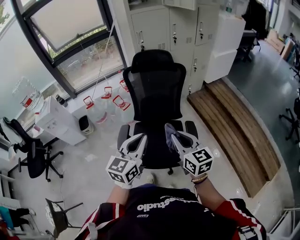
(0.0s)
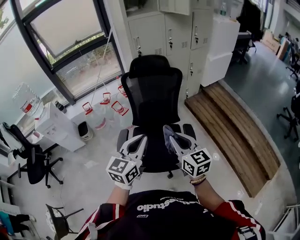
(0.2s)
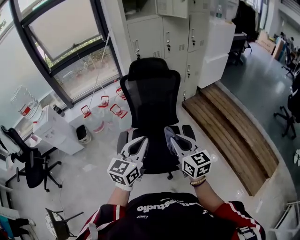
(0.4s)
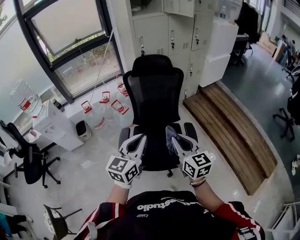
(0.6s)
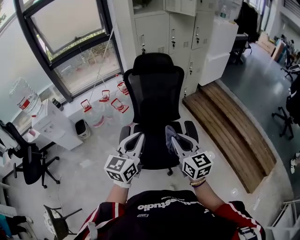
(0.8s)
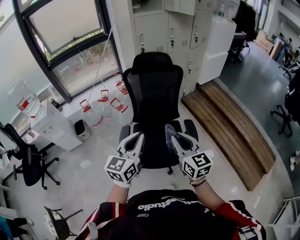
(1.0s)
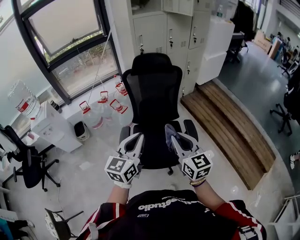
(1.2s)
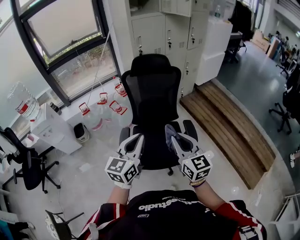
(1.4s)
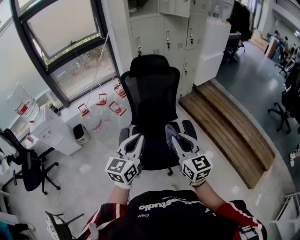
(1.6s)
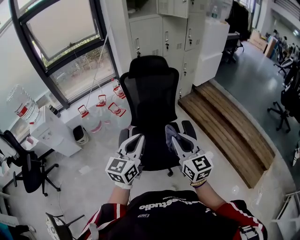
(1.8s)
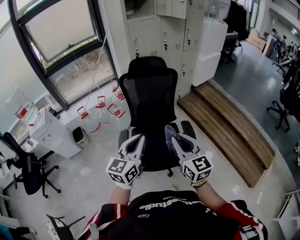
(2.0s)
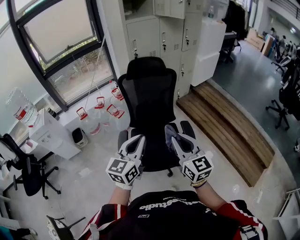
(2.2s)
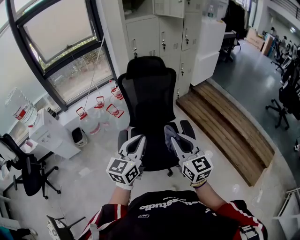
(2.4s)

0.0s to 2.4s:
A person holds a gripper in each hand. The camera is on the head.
0.0s to 1.2s: The left gripper moves to the left, some 10 cm. Meanwhile the right gripper is displaced to the left and backward by some 10 cm.
1.2s to 2.4s: The grippers stay close to where they were, moving slightly.

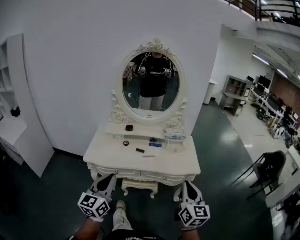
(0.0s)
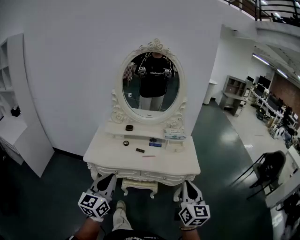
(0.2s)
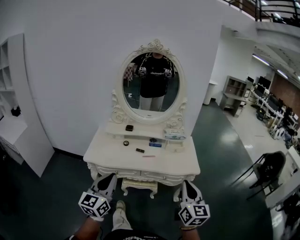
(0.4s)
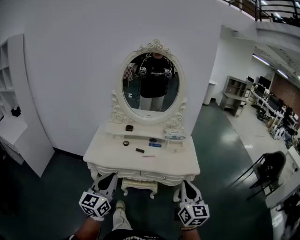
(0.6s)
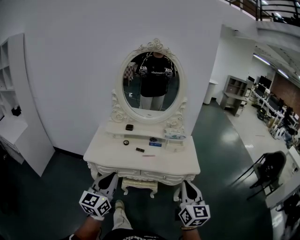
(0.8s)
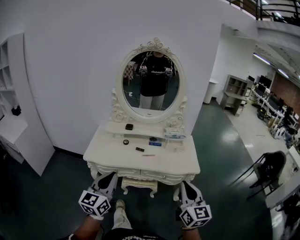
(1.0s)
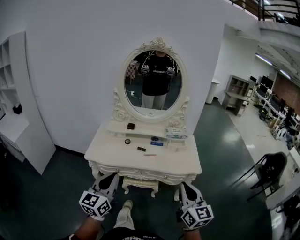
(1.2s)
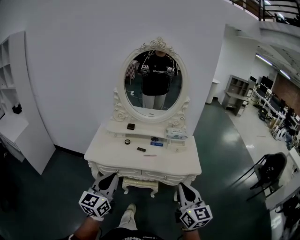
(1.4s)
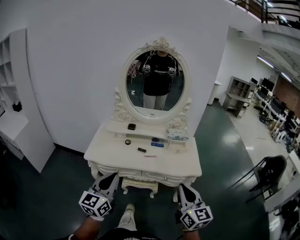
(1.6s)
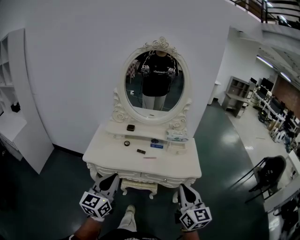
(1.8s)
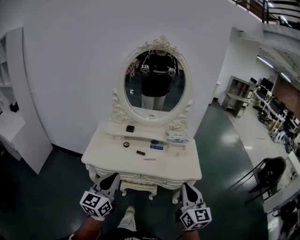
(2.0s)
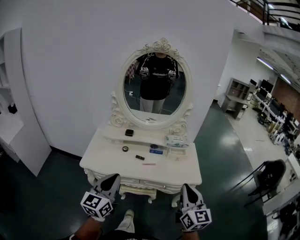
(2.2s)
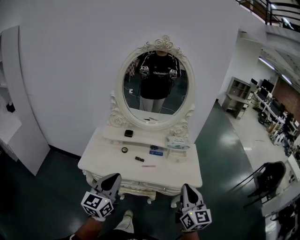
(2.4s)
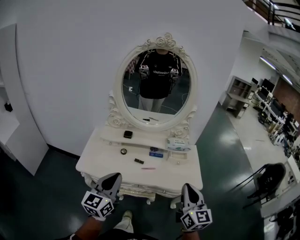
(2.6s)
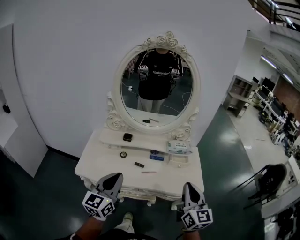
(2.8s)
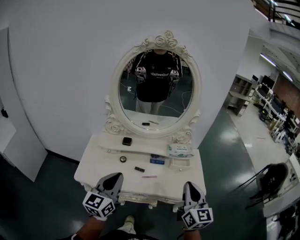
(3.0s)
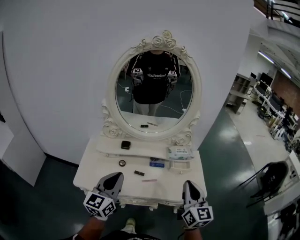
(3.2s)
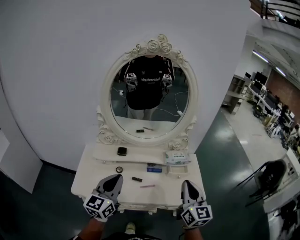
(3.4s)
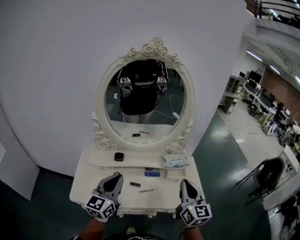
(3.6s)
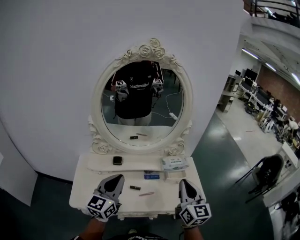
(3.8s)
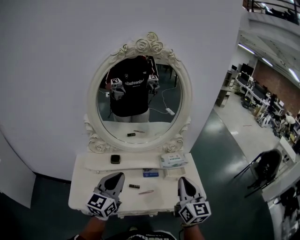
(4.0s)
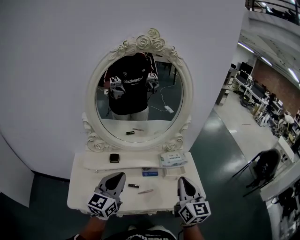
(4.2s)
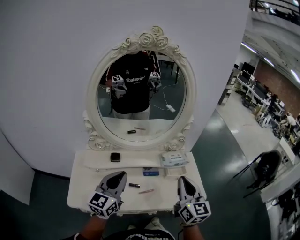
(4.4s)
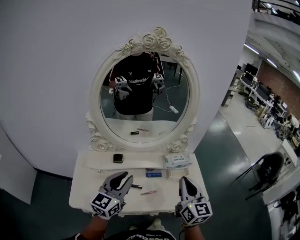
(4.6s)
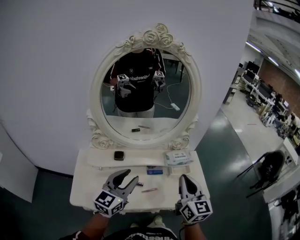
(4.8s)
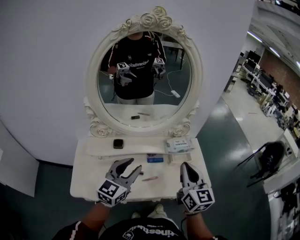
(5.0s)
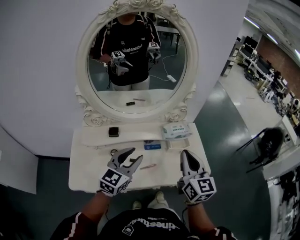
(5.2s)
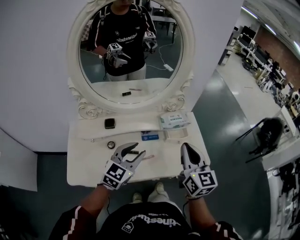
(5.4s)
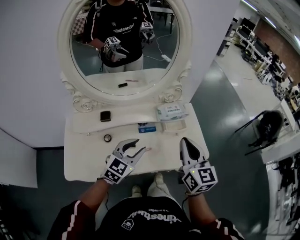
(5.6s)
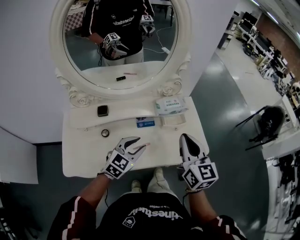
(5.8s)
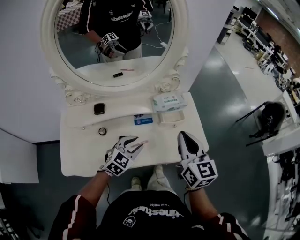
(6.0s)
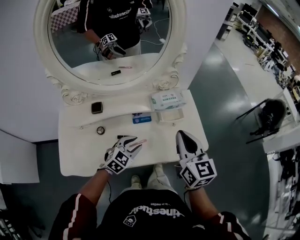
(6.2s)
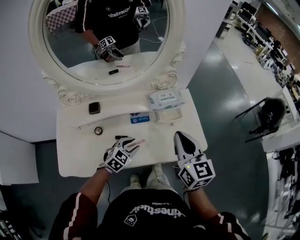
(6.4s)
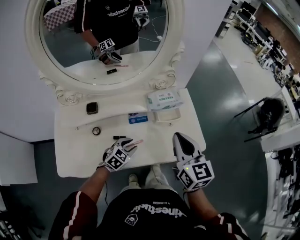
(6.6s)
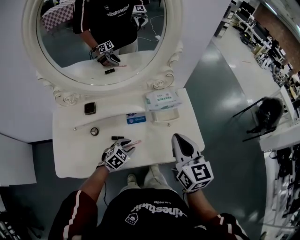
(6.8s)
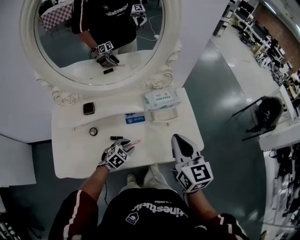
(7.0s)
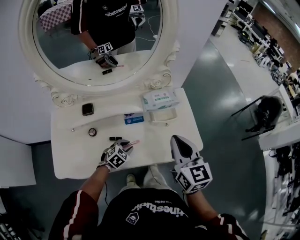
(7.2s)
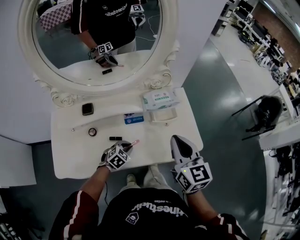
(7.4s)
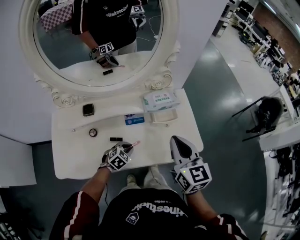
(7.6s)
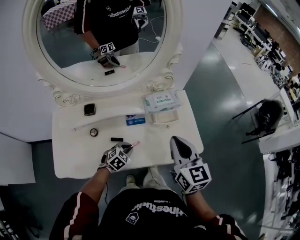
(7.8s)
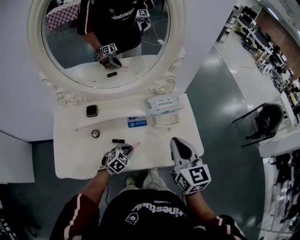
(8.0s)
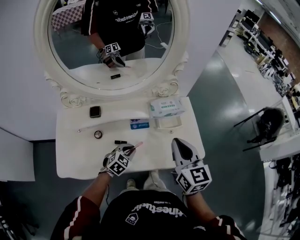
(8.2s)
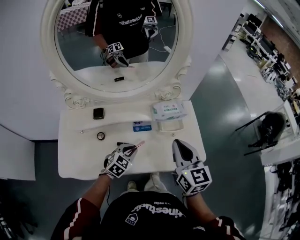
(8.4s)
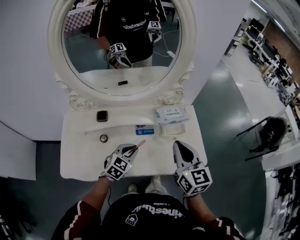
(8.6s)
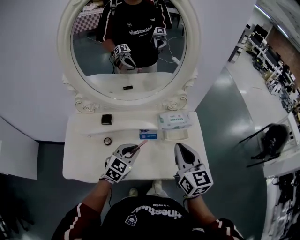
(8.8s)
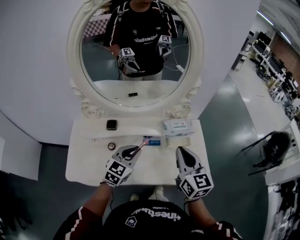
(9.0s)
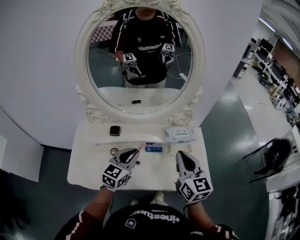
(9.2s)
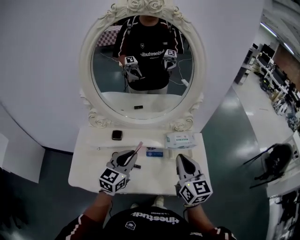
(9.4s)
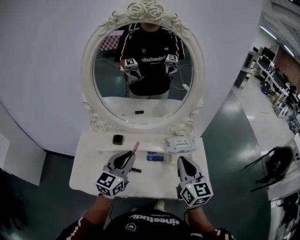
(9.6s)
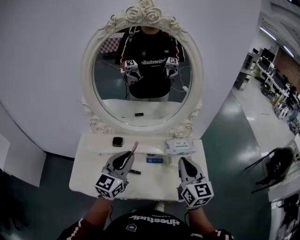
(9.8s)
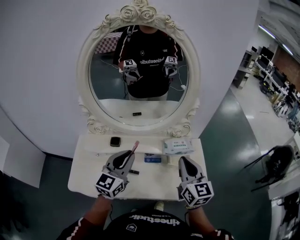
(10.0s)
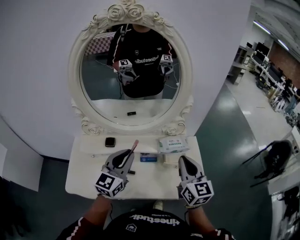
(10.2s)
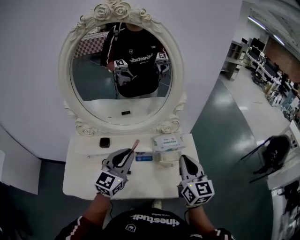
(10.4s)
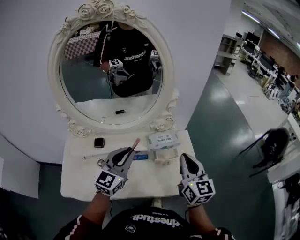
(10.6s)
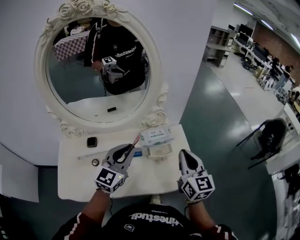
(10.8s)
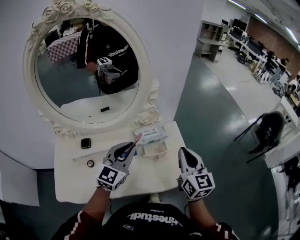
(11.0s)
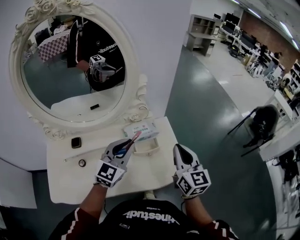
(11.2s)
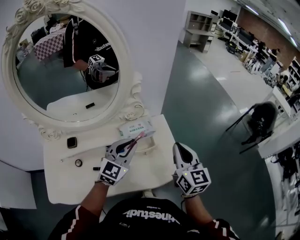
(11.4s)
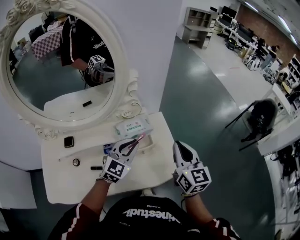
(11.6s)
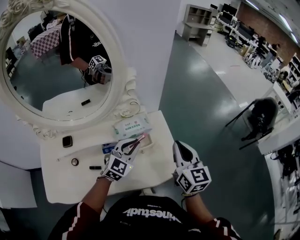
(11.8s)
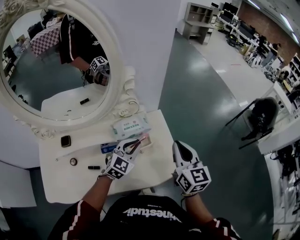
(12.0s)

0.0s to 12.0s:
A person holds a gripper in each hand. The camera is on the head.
0.0s to 1.6s: The grippers move only a little.
1.6s to 3.0s: The two grippers go some 20 cm forward.
3.0s to 4.4s: The left gripper shifts some 15 cm forward. Meanwhile the right gripper goes approximately 15 cm forward and to the left.
4.4s to 6.0s: The right gripper travels downward by roughly 5 cm. The left gripper shifts roughly 25 cm downward and to the right, tilts its fingers some 30 degrees downward, and opens up.
6.0s to 7.6s: The left gripper goes about 15 cm downward, rotates roughly 20 degrees, and closes its fingers.
7.6s to 9.0s: The left gripper travels upward by roughly 25 cm, and points its fingers roughly 30 degrees further upward; the right gripper ends up about 5 cm from where it was.
9.0s to 10.4s: The right gripper moves to the right, about 5 cm; the left gripper moves upward, some 10 cm.
10.4s to 12.0s: The right gripper shifts some 15 cm to the right, downward and forward, while the left gripper moves to the right, downward and forward, about 30 cm, and changes its angle by some 30 degrees.

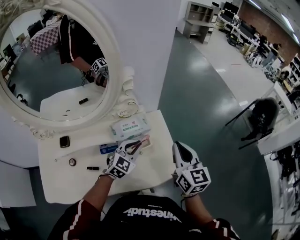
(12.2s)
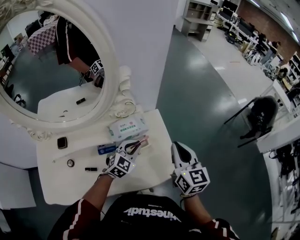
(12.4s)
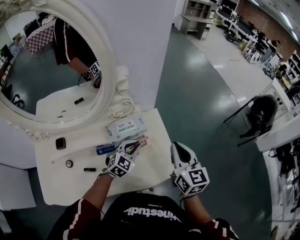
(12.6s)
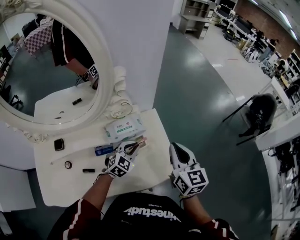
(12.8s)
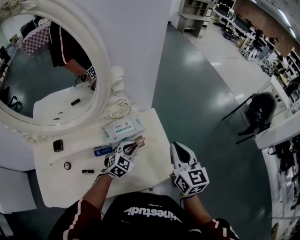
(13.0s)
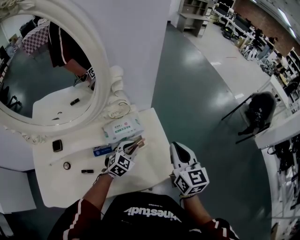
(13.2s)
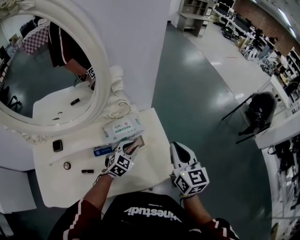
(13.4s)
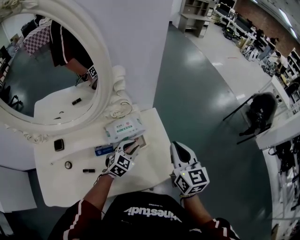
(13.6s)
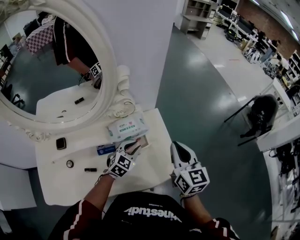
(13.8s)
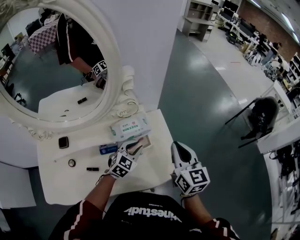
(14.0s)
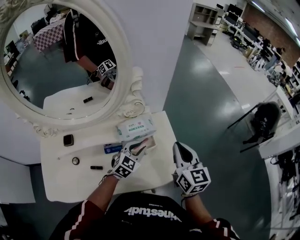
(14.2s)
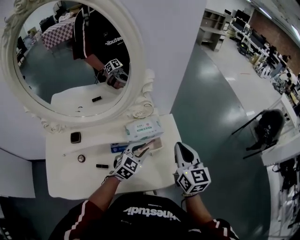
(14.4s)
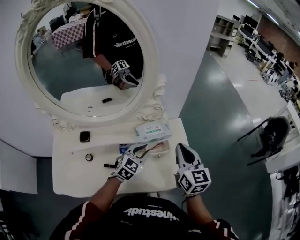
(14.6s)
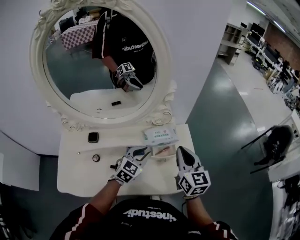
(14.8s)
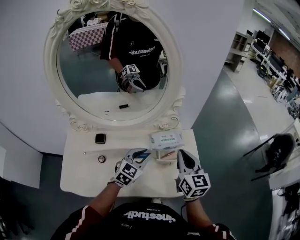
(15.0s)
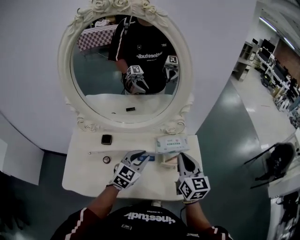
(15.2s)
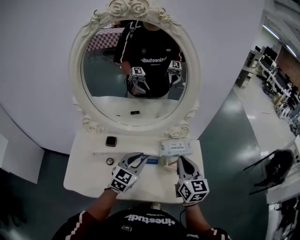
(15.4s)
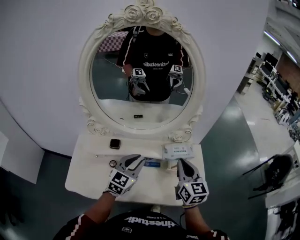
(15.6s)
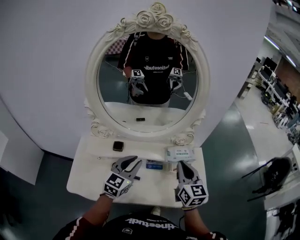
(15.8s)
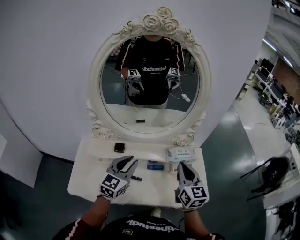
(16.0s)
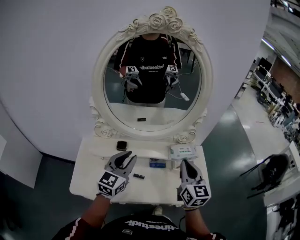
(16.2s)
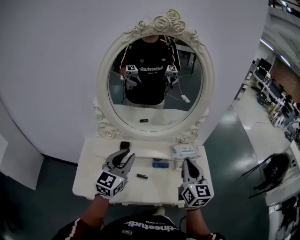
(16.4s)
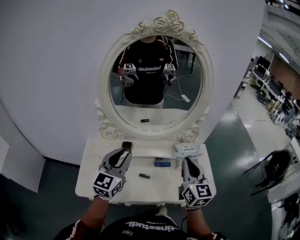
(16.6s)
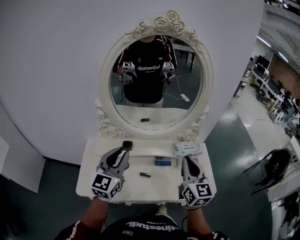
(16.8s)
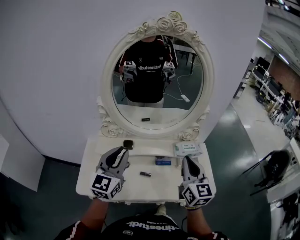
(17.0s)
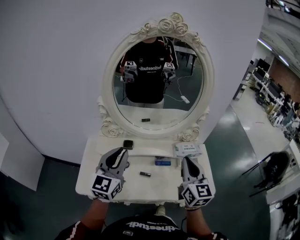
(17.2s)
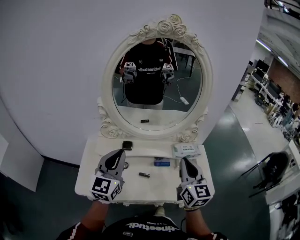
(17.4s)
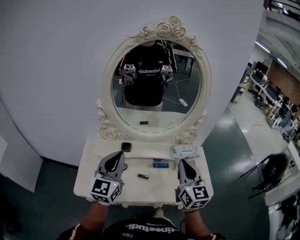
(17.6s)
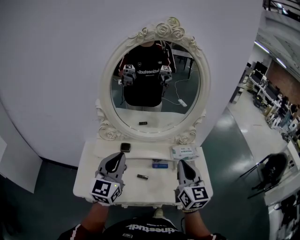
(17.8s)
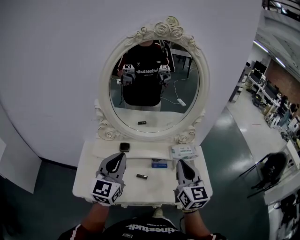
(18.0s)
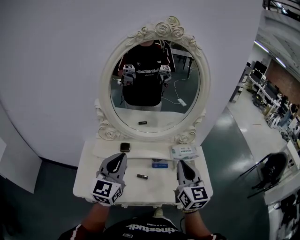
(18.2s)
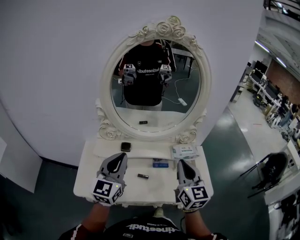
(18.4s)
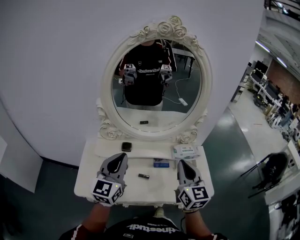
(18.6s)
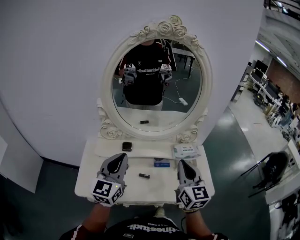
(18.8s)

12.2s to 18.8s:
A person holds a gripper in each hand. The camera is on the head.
12.2s to 13.8s: The left gripper moves downward, some 5 cm.
13.8s to 15.4s: The left gripper shifts roughly 25 cm to the left, upward and backward, and turns by some 30 degrees, while the right gripper is displaced to the left by some 20 cm.
15.4s to 17.2s: The right gripper moves to the left, backward and upward, about 15 cm. Meanwhile the left gripper heads to the left, upward and backward, covering about 25 cm, and turns by roughly 30 degrees.
17.2s to 18.8s: The grippers stay close to where they were, moving slightly.

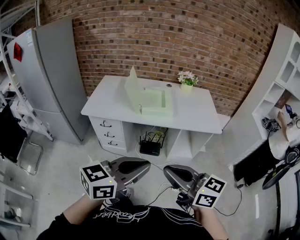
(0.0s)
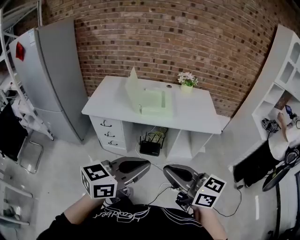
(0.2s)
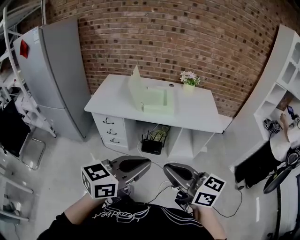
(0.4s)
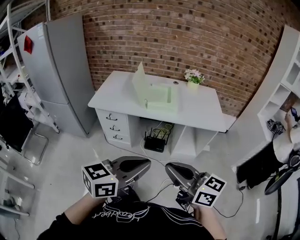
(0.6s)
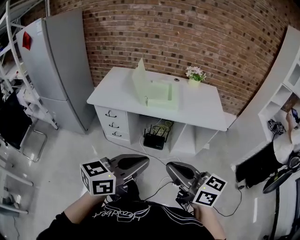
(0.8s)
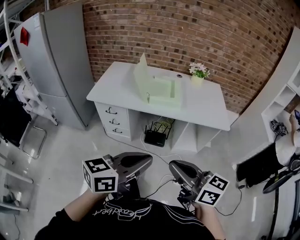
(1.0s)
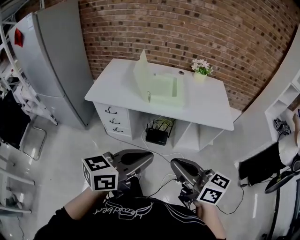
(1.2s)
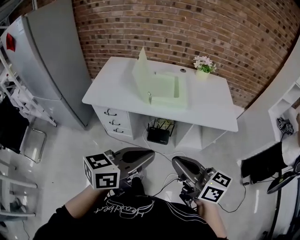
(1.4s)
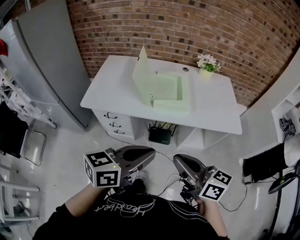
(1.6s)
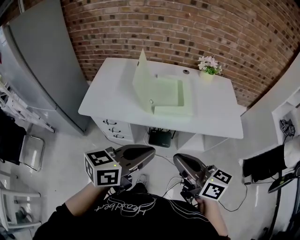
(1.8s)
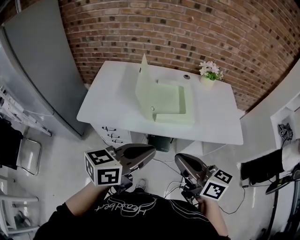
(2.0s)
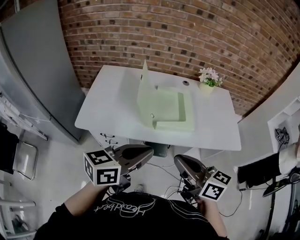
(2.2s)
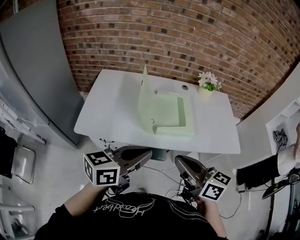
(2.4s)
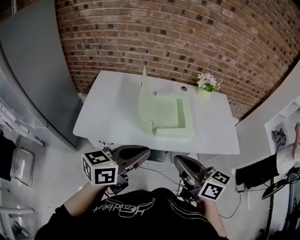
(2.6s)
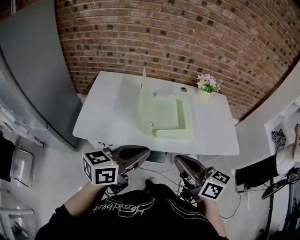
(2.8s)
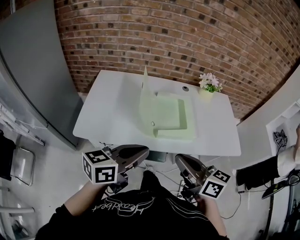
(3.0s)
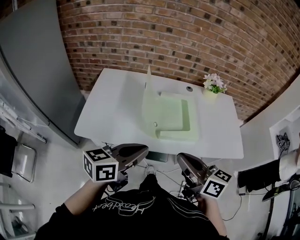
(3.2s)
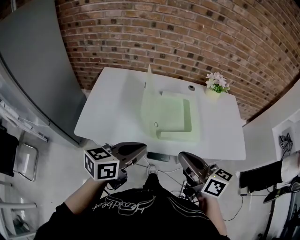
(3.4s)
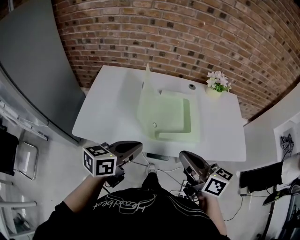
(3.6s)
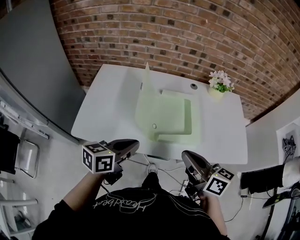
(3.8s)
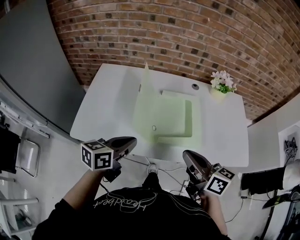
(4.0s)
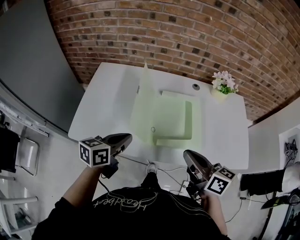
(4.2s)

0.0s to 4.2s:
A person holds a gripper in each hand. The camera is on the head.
0.0s to 1.4s: The left gripper heads forward and downward, covering some 10 cm, while the right gripper shifts approximately 10 cm forward.
1.4s to 2.8s: The two grippers go approximately 25 cm forward and to the left.
2.8s to 4.2s: Both grippers move forward and downward, roughly 15 cm. The left gripper rotates about 20 degrees.
